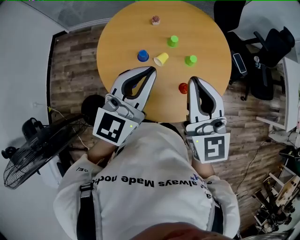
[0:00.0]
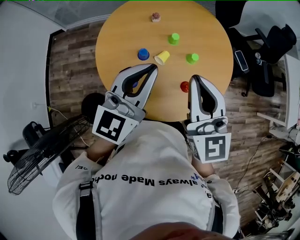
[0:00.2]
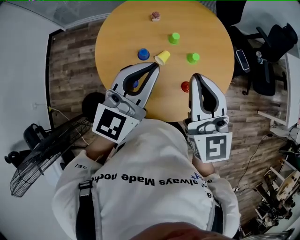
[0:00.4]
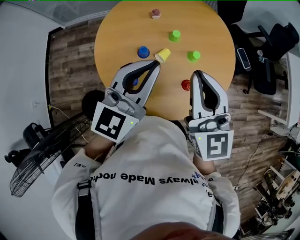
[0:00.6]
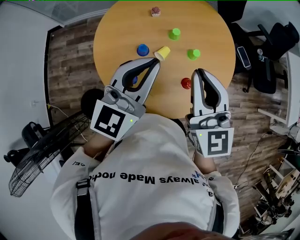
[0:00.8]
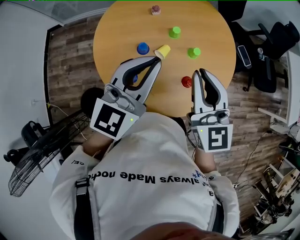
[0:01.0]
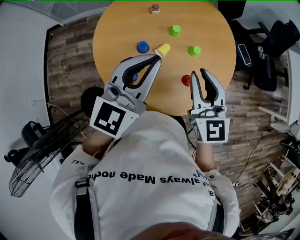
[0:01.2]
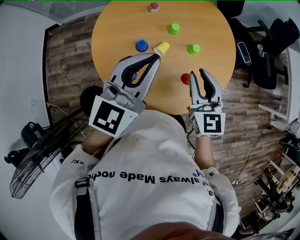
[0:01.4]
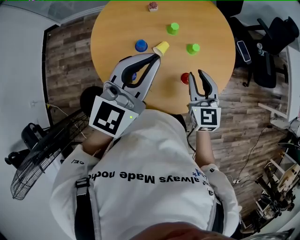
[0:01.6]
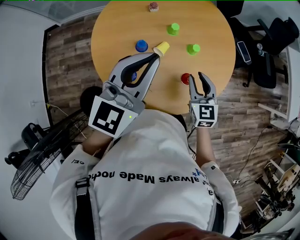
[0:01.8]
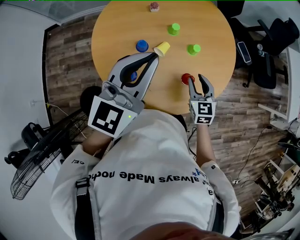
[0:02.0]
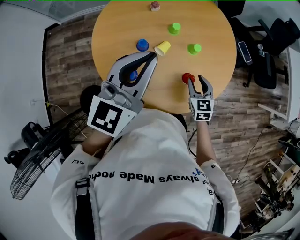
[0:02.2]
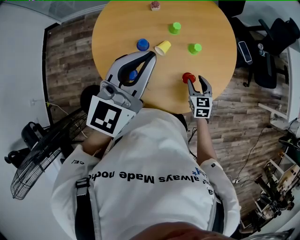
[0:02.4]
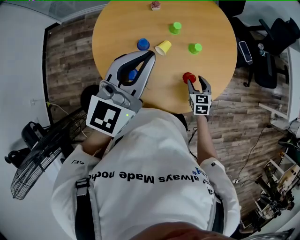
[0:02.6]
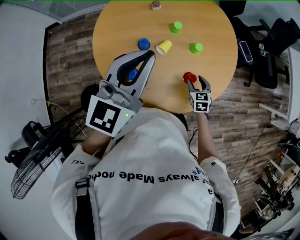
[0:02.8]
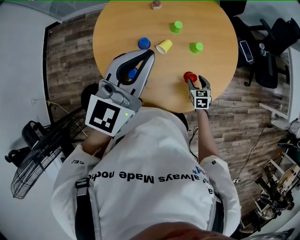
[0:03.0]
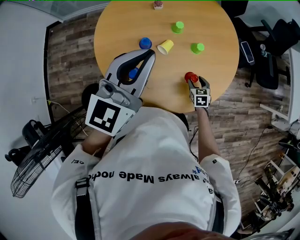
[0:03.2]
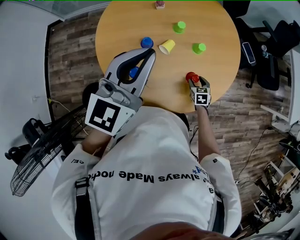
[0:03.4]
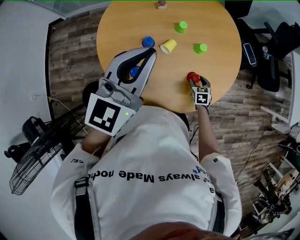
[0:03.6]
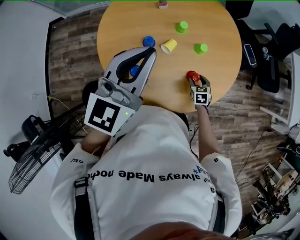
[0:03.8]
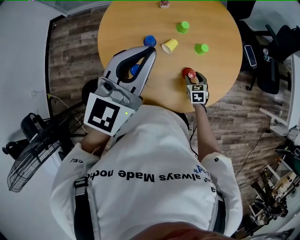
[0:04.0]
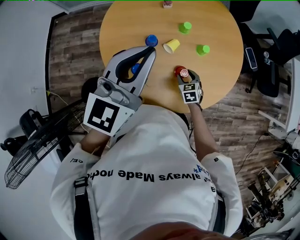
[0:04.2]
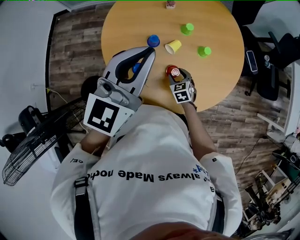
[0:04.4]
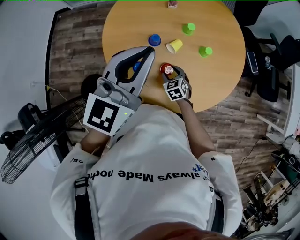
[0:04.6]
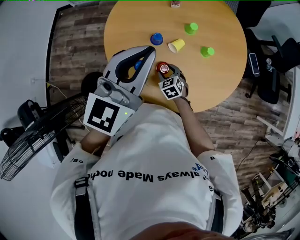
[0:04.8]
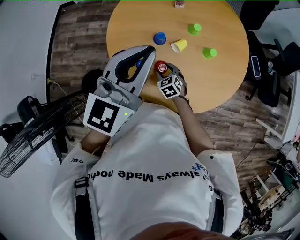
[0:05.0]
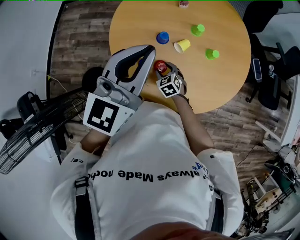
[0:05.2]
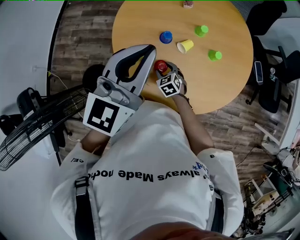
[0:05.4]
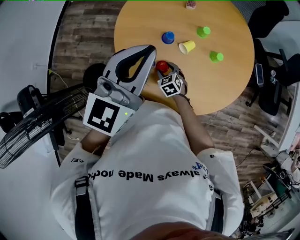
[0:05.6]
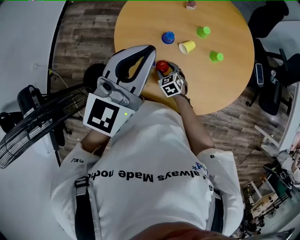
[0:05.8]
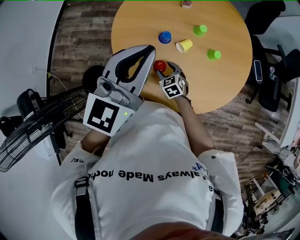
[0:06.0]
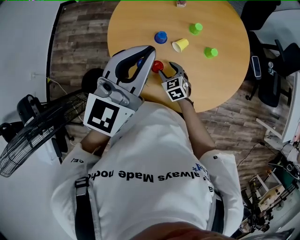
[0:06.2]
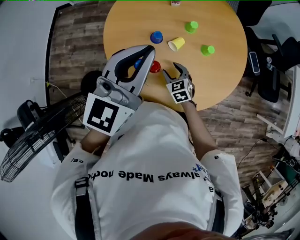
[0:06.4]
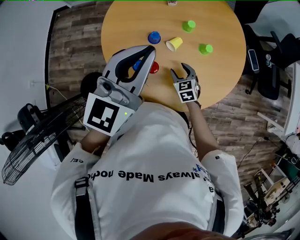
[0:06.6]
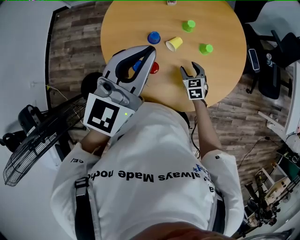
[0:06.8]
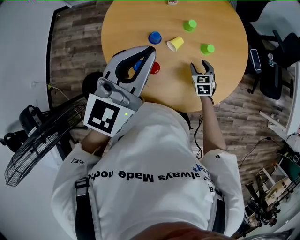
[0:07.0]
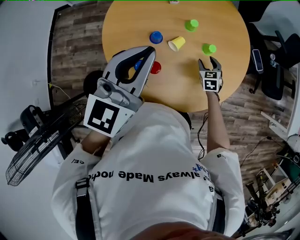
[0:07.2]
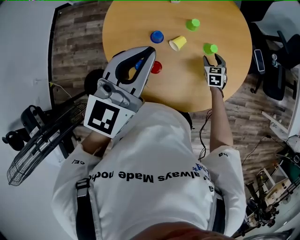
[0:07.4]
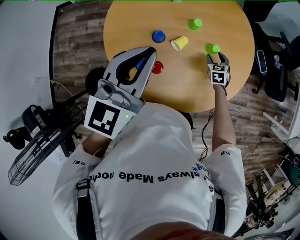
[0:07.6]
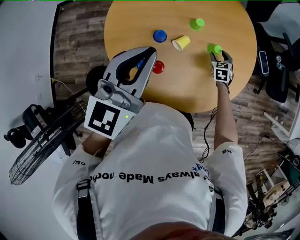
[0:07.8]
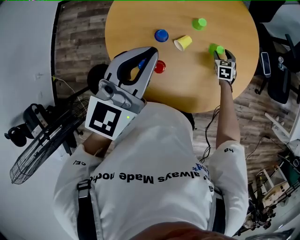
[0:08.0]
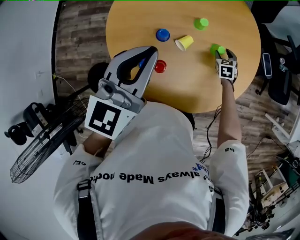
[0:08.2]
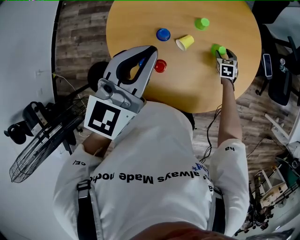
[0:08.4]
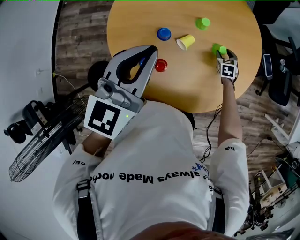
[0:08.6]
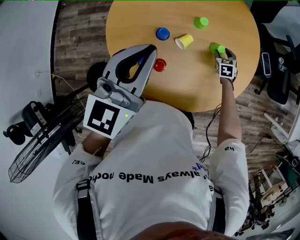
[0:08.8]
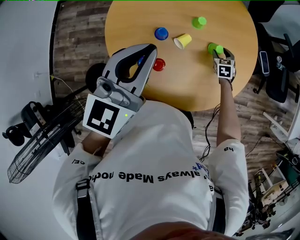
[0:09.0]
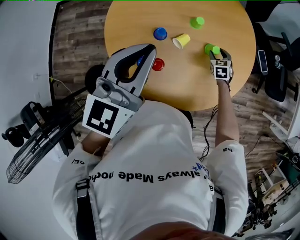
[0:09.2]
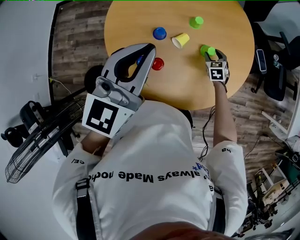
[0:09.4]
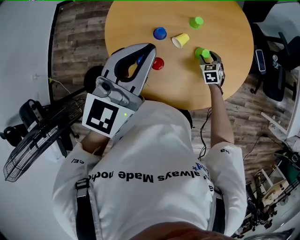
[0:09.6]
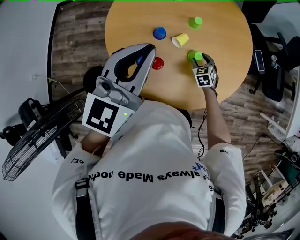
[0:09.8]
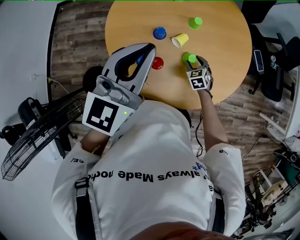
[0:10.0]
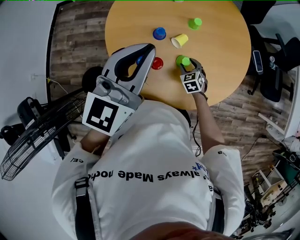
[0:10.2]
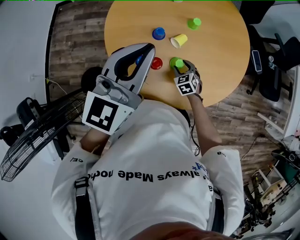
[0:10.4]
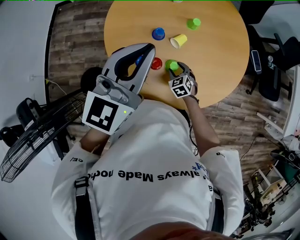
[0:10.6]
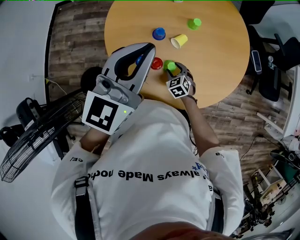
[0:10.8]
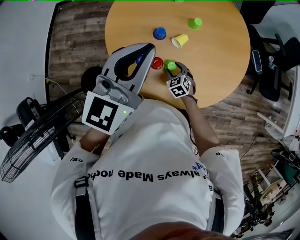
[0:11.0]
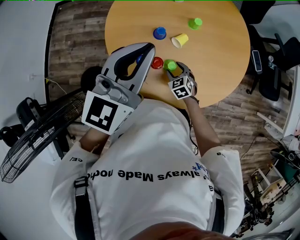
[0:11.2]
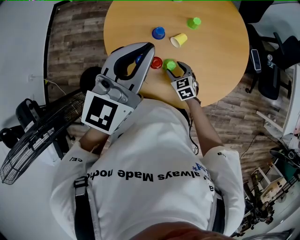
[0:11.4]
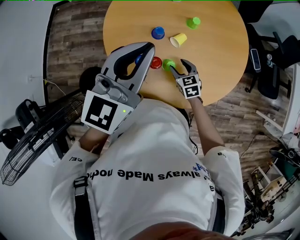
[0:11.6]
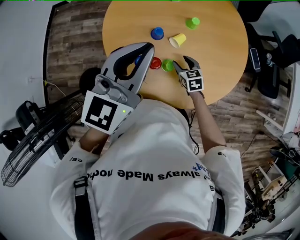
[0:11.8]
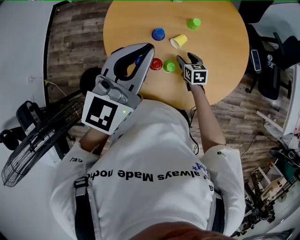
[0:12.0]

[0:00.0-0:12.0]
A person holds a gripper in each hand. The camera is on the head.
0:00.0 to 0:01.6: The right gripper is displaced downward by roughly 20 cm, and swivels roughly 20 degrees.
0:01.6 to 0:03.0: The right gripper moves downward, about 25 cm, turns by roughly 30 degrees, and opens up.
0:03.0 to 0:04.4: The right gripper moves to the left, approximately 15 cm, and turns by roughly 20 degrees.
0:04.4 to 0:06.0: The right gripper shifts approximately 10 cm to the left.
0:06.0 to 0:07.6: The left gripper changes place by about 5 cm; the right gripper goes approximately 30 cm to the right and forward, and rotates approximately 30 degrees.
0:07.6 to 0:09.0: There are only small adjustments of the grippers.
0:09.0 to 0:10.4: The right gripper moves backward and to the left, some 25 cm.
0:10.4 to 0:12.0: The right gripper moves forward, roughly 5 cm, and rotates approximately 30 degrees.

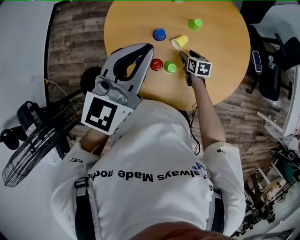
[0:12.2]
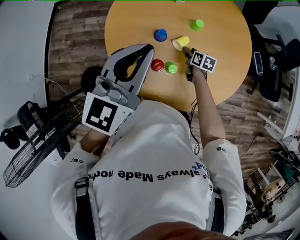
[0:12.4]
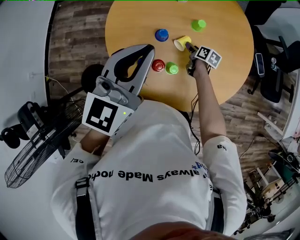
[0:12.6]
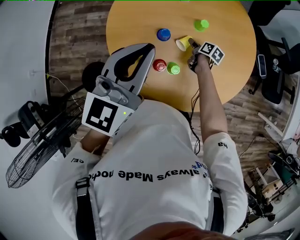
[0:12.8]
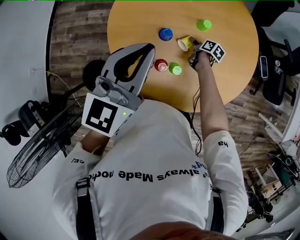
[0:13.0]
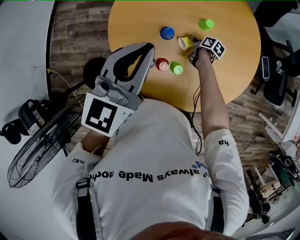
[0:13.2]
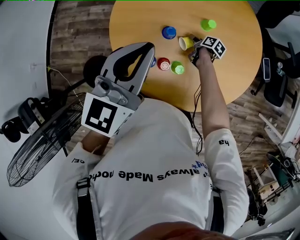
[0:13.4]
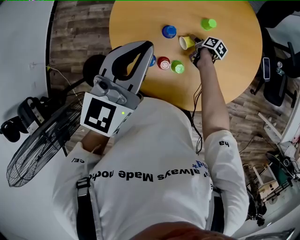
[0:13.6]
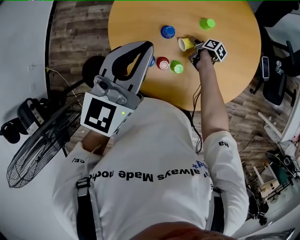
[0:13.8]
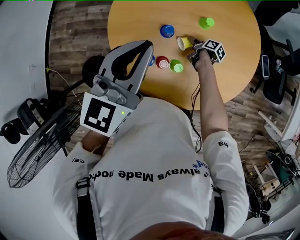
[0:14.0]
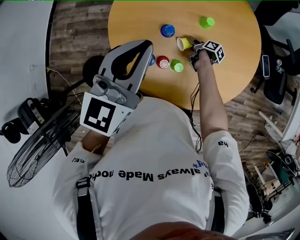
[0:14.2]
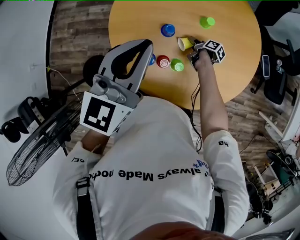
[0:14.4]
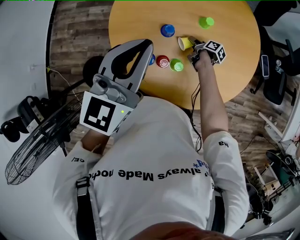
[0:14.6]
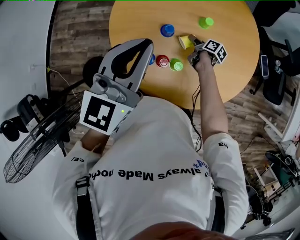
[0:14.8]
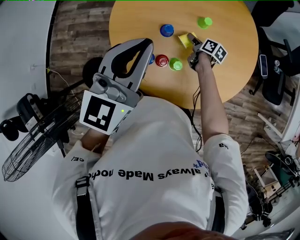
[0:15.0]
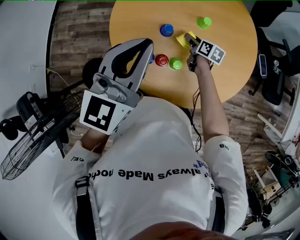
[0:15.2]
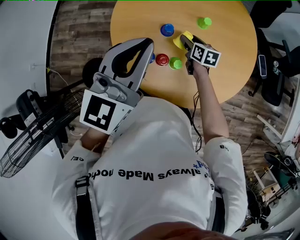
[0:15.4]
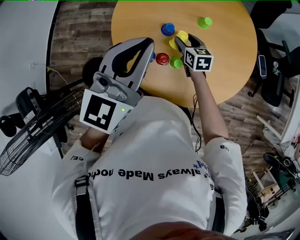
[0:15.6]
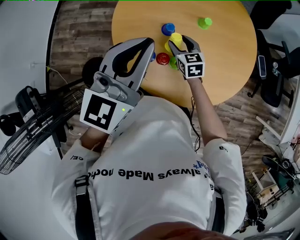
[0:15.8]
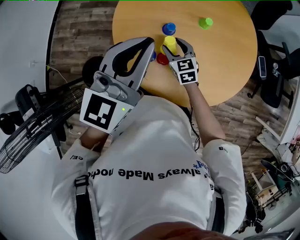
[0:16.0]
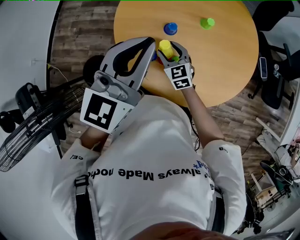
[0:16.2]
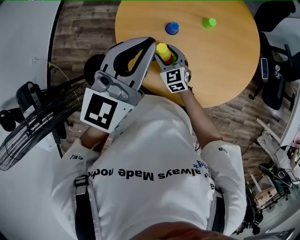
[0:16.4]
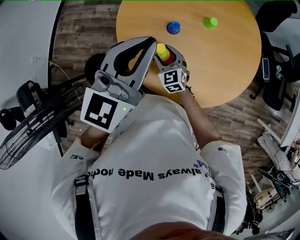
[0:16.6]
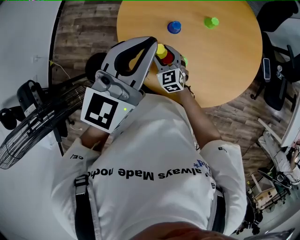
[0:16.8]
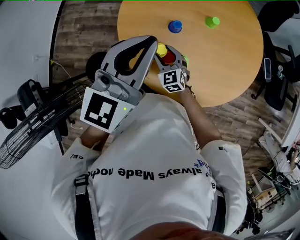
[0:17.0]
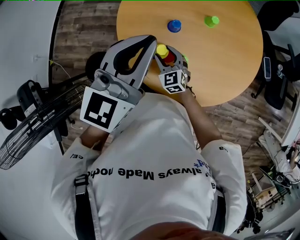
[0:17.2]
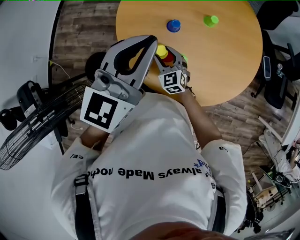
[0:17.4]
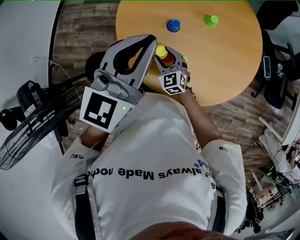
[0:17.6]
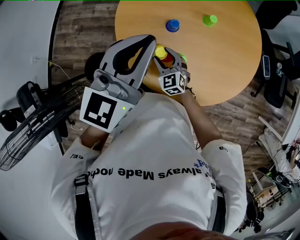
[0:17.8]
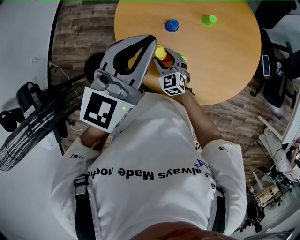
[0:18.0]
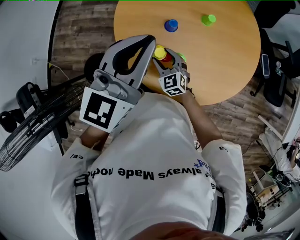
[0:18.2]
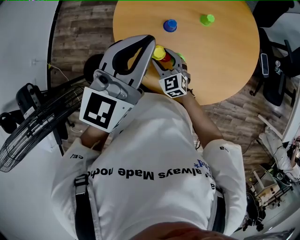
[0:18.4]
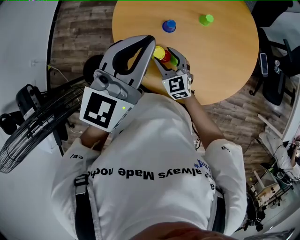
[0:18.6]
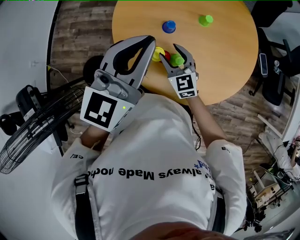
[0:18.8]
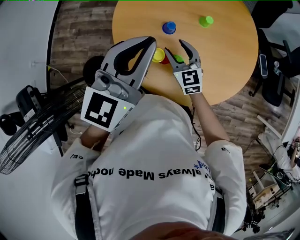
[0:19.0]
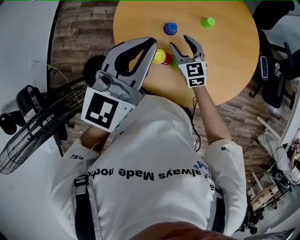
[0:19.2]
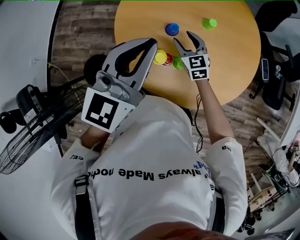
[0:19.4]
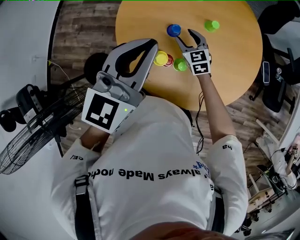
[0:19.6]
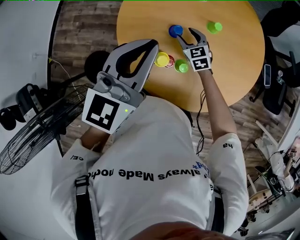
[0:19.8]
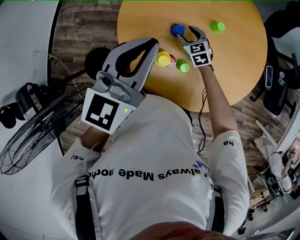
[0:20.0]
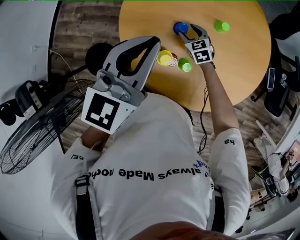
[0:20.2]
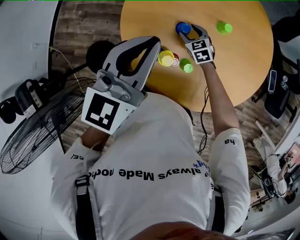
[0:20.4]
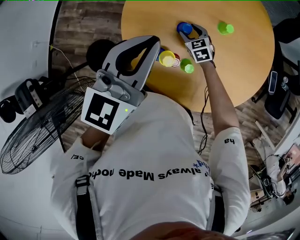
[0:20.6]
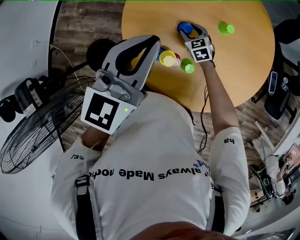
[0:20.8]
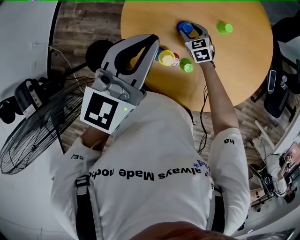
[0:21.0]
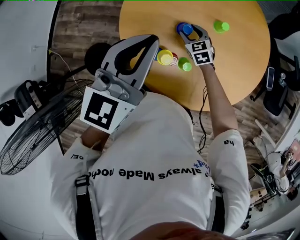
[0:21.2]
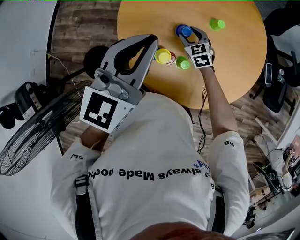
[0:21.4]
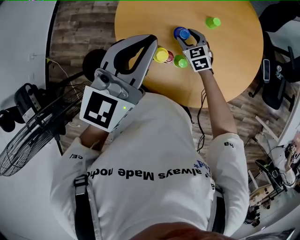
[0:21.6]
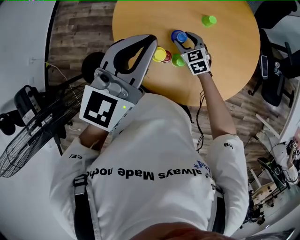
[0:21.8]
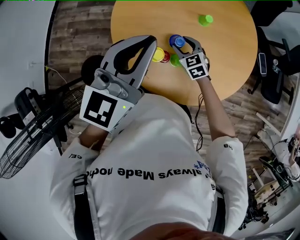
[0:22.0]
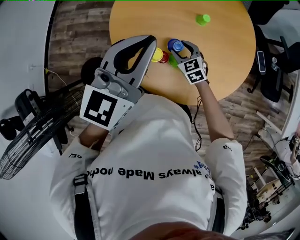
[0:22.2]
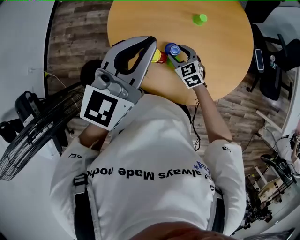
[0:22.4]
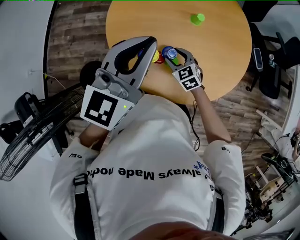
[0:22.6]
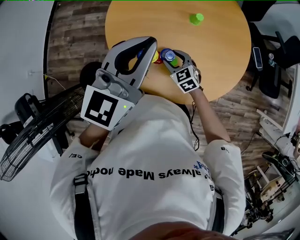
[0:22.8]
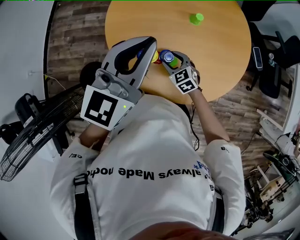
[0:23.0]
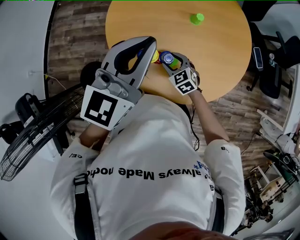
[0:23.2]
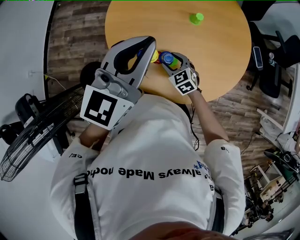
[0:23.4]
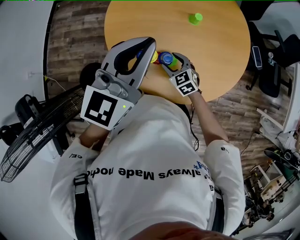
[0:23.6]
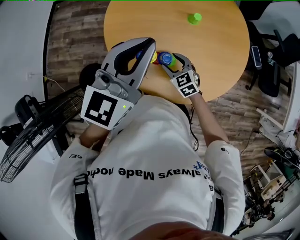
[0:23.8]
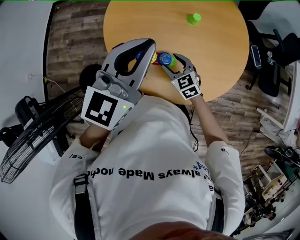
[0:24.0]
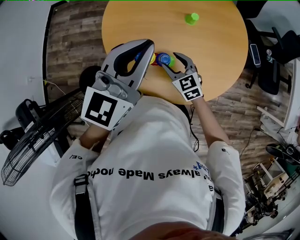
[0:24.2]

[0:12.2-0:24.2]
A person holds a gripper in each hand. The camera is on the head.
0:12.2 to 0:13.8: The right gripper is displaced downward and forward by some 10 cm, and rotates around the line of its fingers by roughly 50 degrees, clockwise from behind; the left gripper ends up approximately 5 cm from where it was.
0:13.8 to 0:15.2: The right gripper is displaced upward by approximately 10 cm, and swivels some 30 degrees.
0:15.2 to 0:16.6: The right gripper shifts roughly 20 cm to the left and backward, and twists some 60 degrees counterclockwise, seen from behind.
0:16.6 to 0:18.2: There are only small adjustments of the grippers.
0:18.2 to 0:19.8: The right gripper is displaced forward and to the right by approximately 15 cm.
0:21.2 to 0:22.6: The right gripper travels backward by about 15 cm. Meanwhile the left gripper is displaced backward by some 5 cm.
0:22.6 to 0:24.2: The right gripper changes place by some 5 cm.
